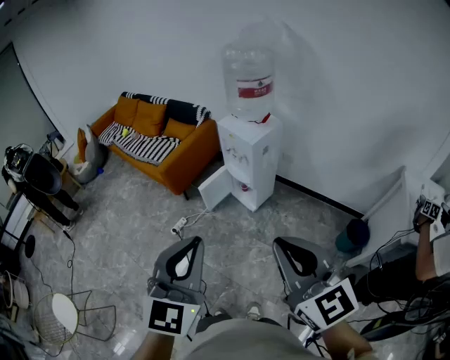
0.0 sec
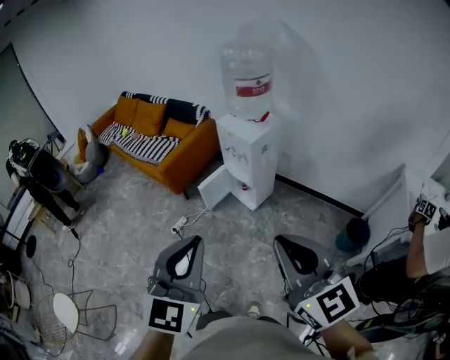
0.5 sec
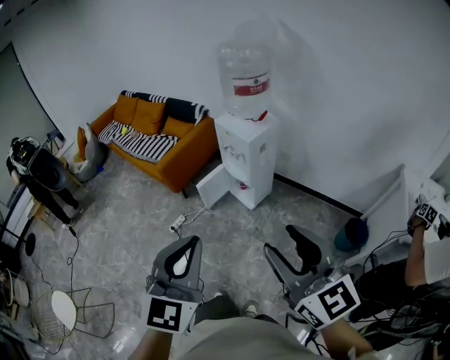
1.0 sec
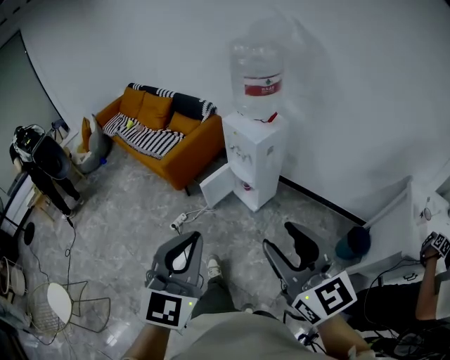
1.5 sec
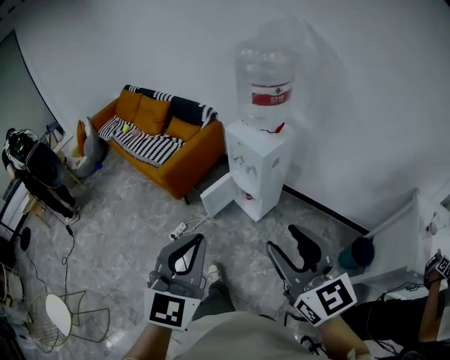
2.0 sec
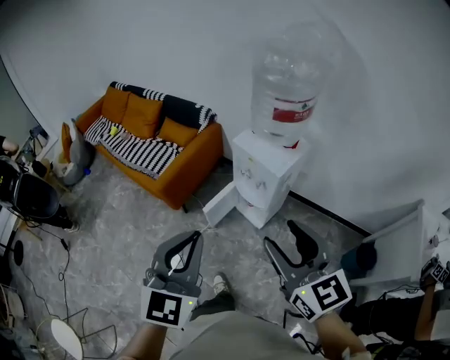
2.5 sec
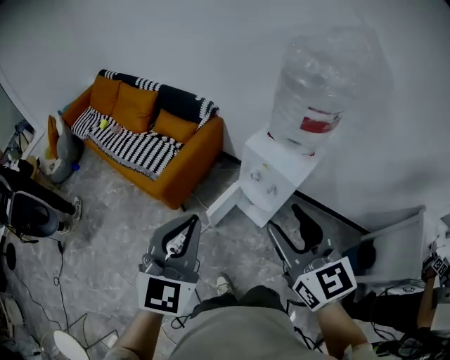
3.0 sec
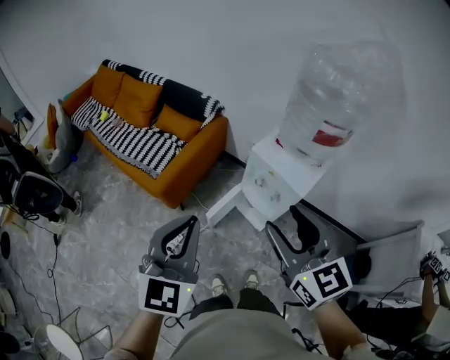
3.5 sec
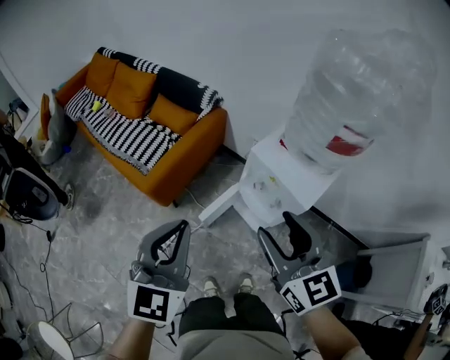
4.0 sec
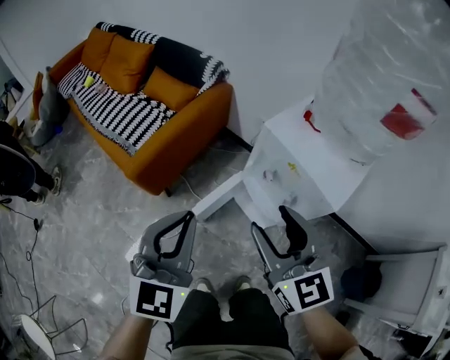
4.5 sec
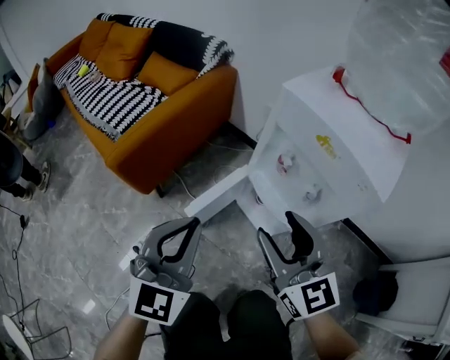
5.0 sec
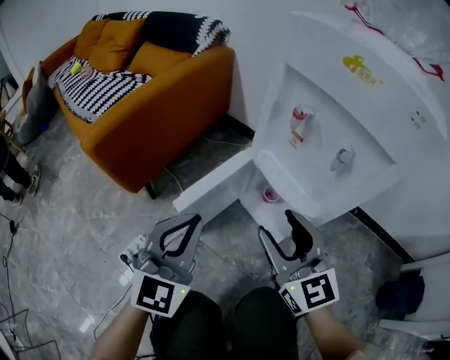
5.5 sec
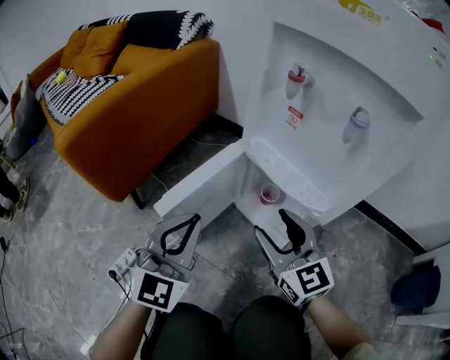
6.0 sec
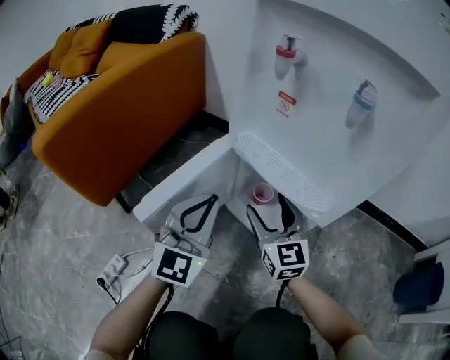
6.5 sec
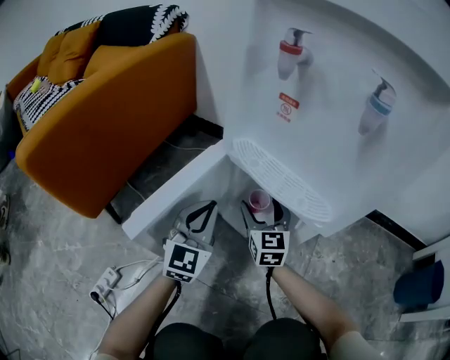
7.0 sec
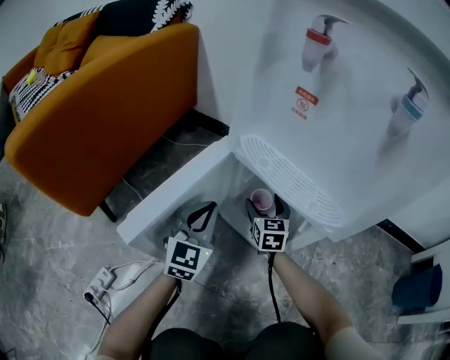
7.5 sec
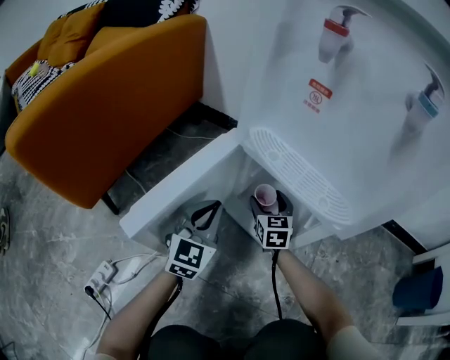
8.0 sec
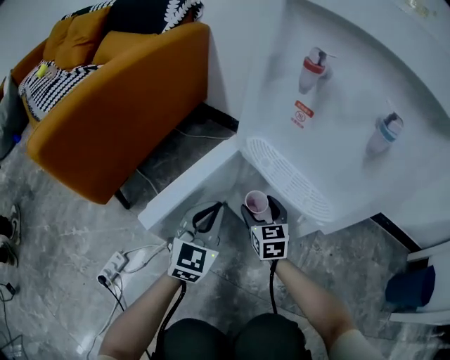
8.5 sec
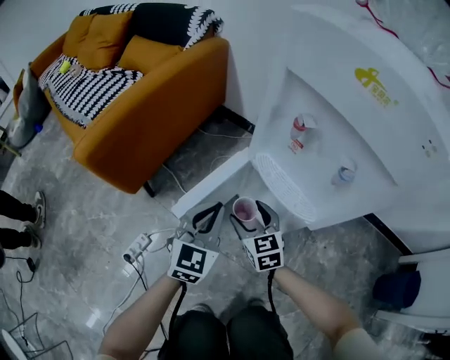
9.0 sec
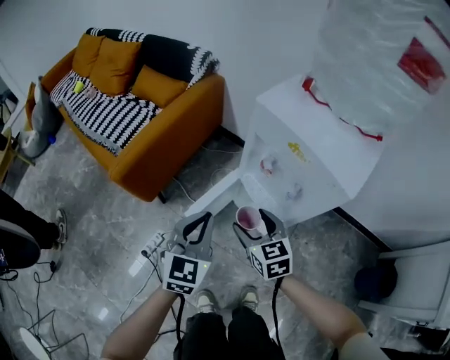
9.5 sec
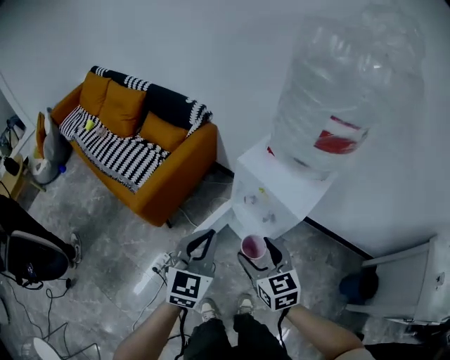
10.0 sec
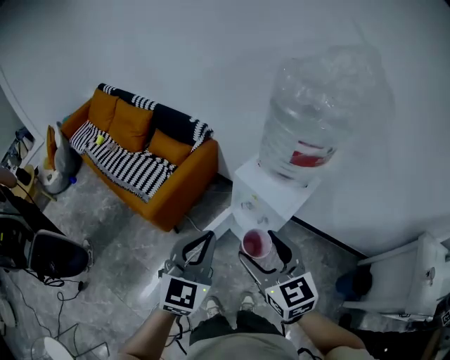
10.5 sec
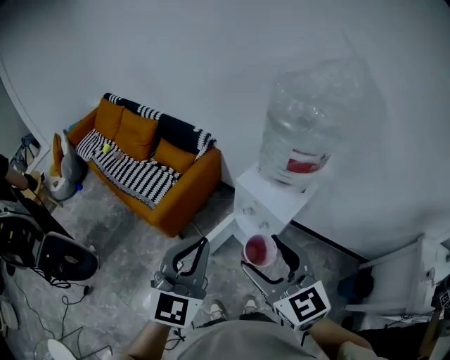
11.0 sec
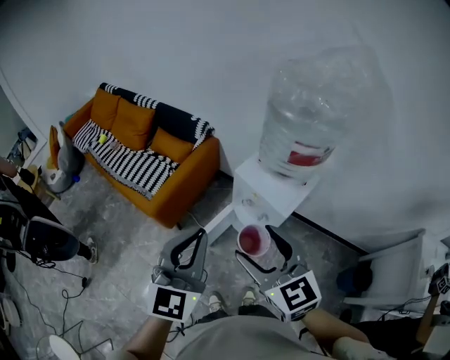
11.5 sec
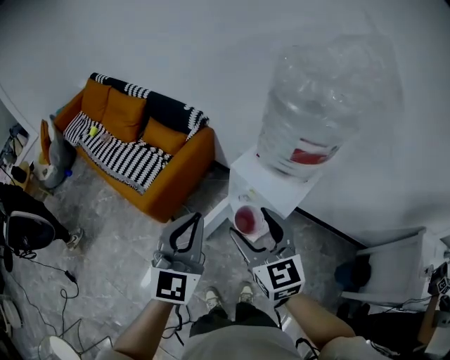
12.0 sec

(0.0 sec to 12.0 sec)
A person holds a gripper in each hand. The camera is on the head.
0.0 sec - 2.0 sec: The grippers both shift forward by some 15 cm. The right gripper opens its fingers.
2.0 sec - 4.0 sec: The pair of grippers is taken forward and to the left, roughly 50 cm.
4.0 sec - 6.0 sec: The two grippers go about 60 cm downward. The left gripper swivels some 30 degrees.
6.0 sec - 8.0 sec: Both grippers travel together downward and forward, some 30 cm. The right gripper rotates approximately 30 degrees.
8.0 sec - 10.0 sec: The two grippers go about 70 cm upward. The right gripper swivels approximately 20 degrees.
10.0 sec - 12.0 sec: The two grippers go about 20 cm upward.

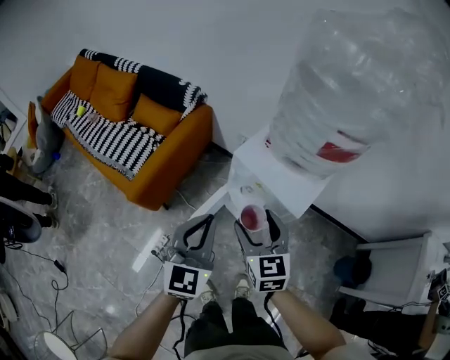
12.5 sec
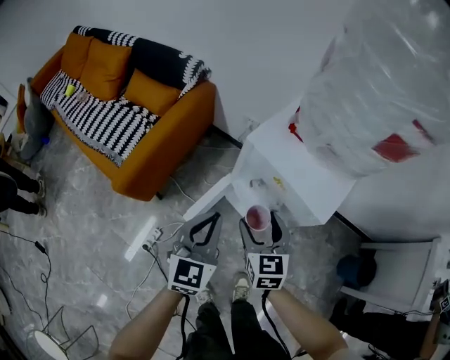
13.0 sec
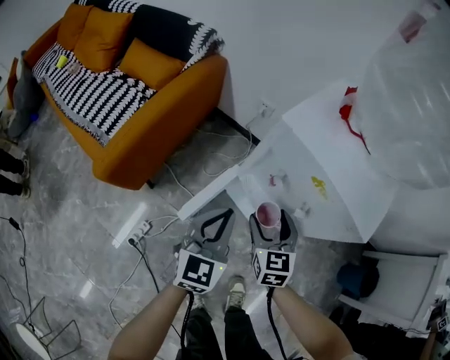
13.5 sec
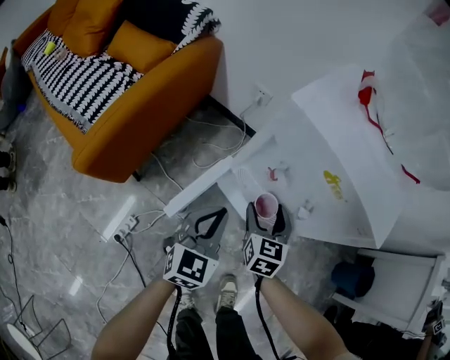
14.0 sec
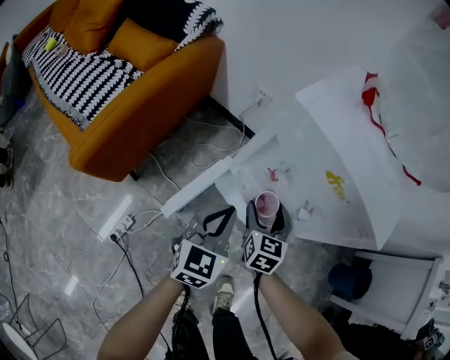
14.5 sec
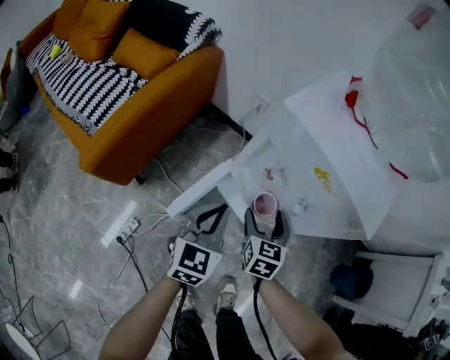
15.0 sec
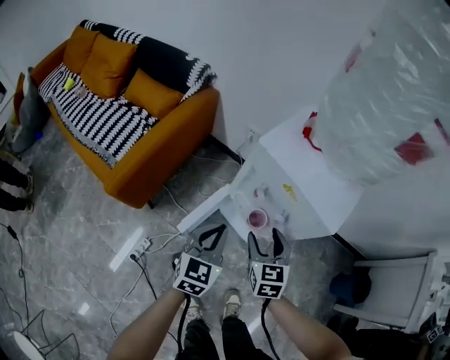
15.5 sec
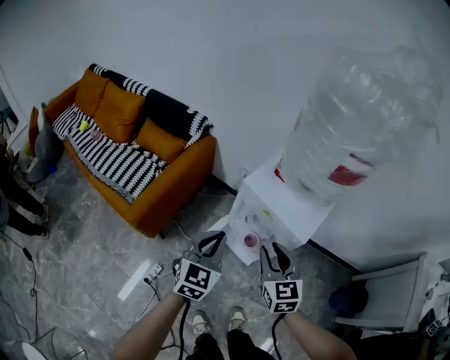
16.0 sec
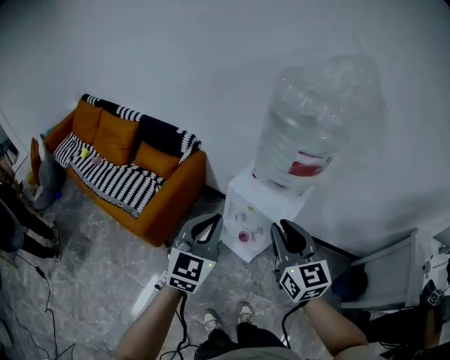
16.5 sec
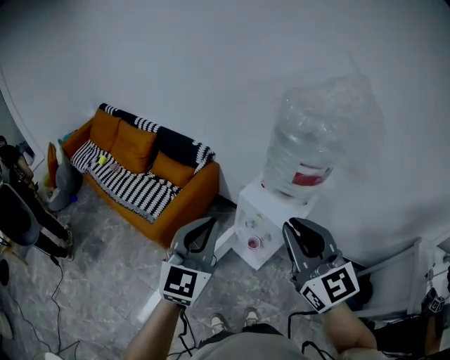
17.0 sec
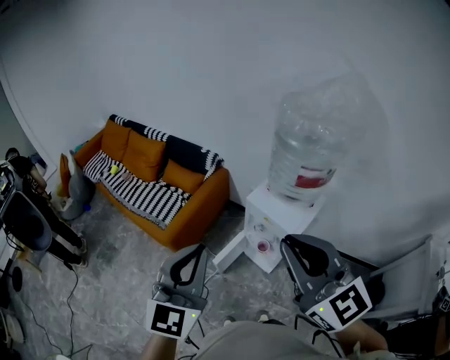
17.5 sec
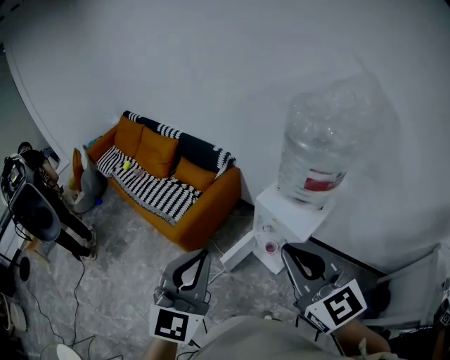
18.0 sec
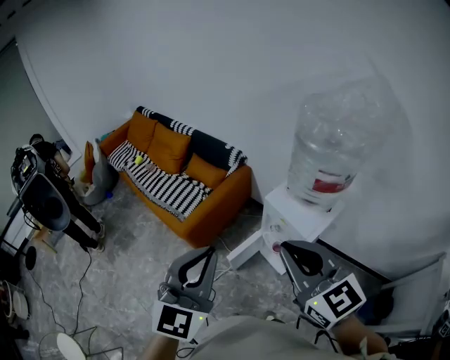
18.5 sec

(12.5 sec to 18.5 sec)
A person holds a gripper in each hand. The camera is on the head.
12.5 sec - 14.5 sec: The two grippers go approximately 40 cm downward. The right gripper rotates roughly 20 degrees.
14.5 sec - 16.5 sec: Both grippers move upward, some 50 cm. The right gripper rotates about 30 degrees, and closes.
16.5 sec - 18.5 sec: The right gripper moves upward, backward and to the left, some 20 cm, and swivels some 30 degrees. The left gripper moves upward and backward, approximately 20 cm.

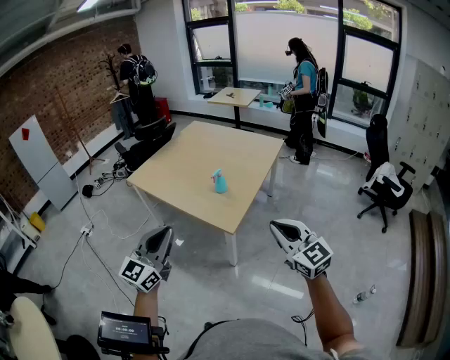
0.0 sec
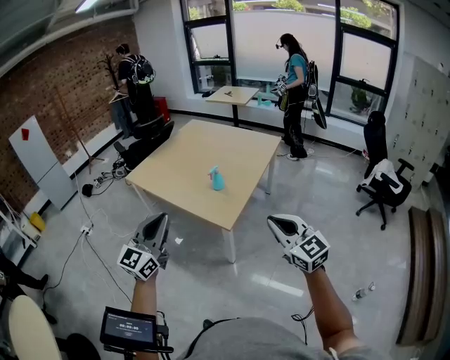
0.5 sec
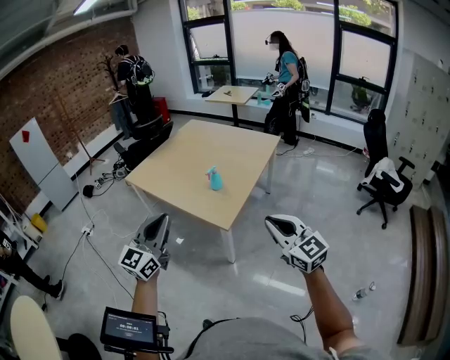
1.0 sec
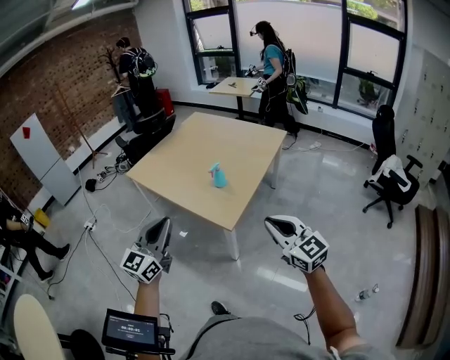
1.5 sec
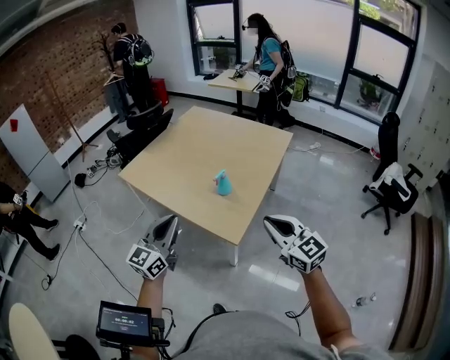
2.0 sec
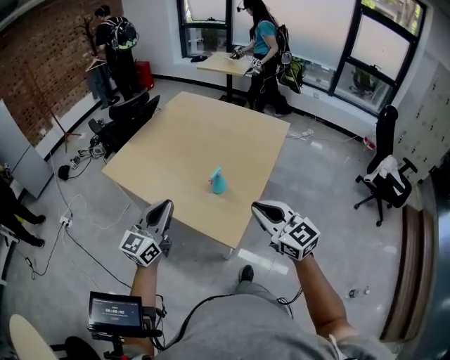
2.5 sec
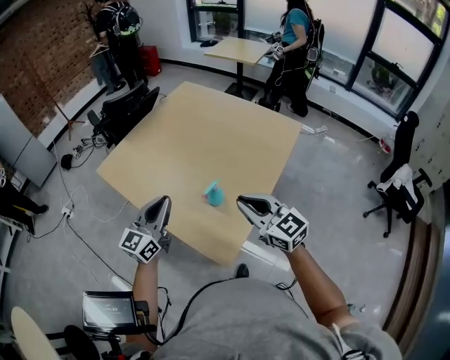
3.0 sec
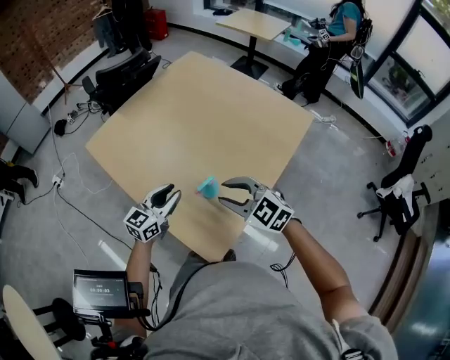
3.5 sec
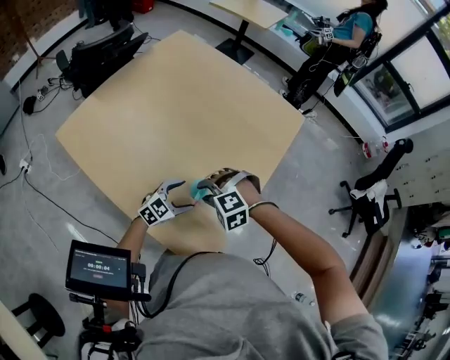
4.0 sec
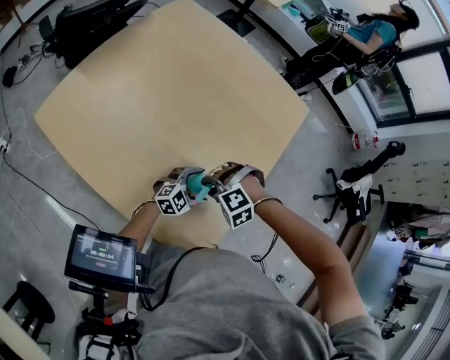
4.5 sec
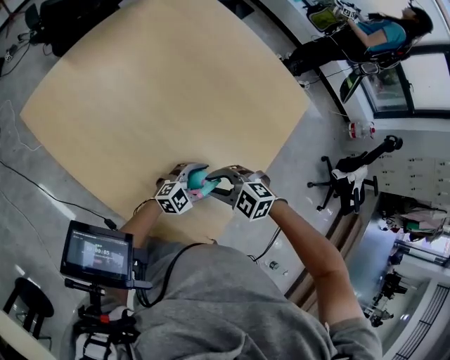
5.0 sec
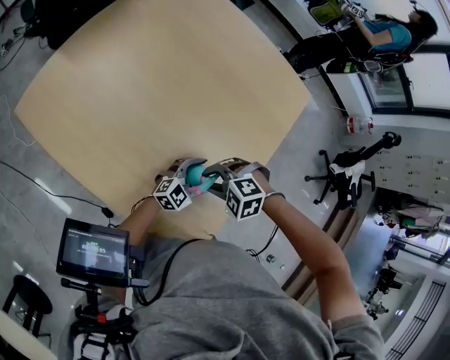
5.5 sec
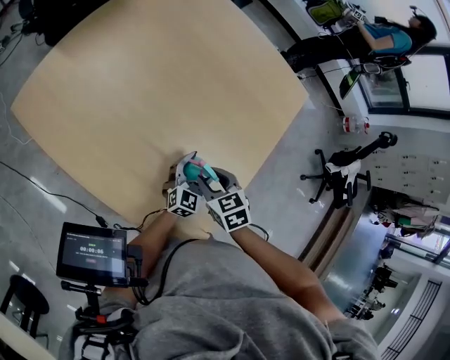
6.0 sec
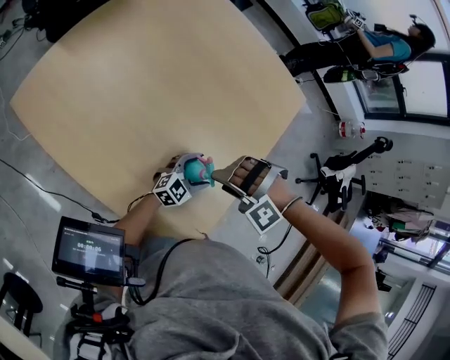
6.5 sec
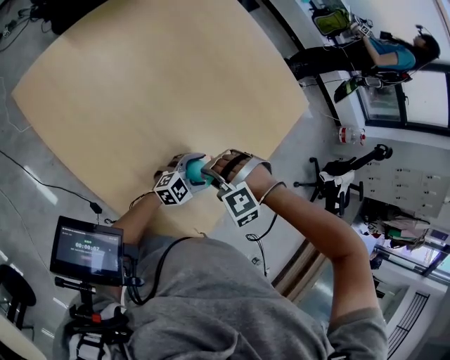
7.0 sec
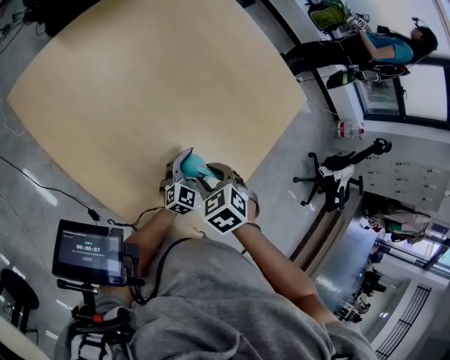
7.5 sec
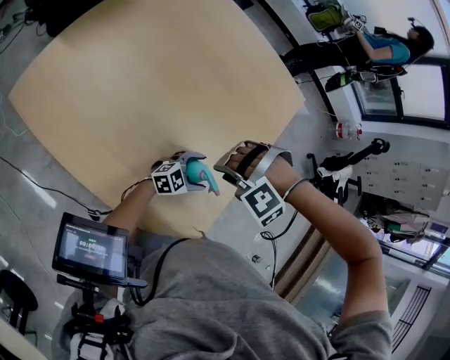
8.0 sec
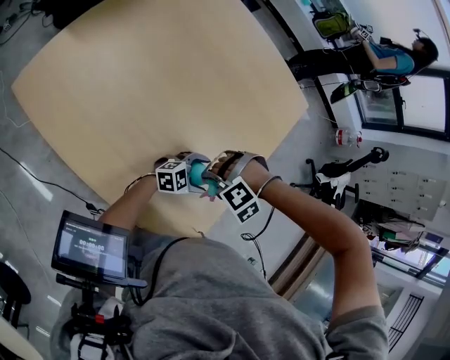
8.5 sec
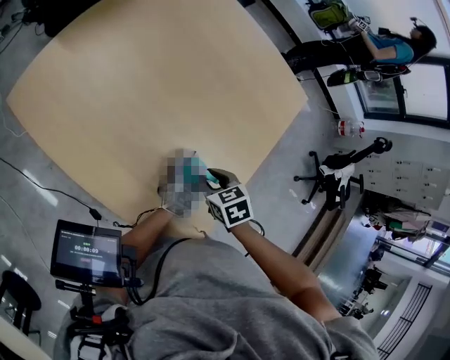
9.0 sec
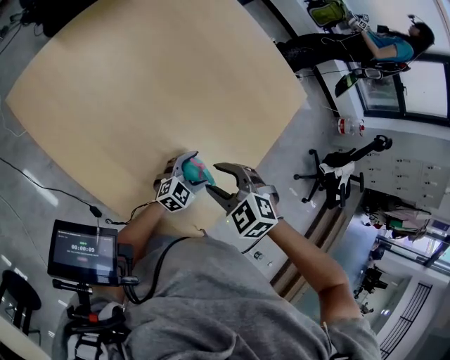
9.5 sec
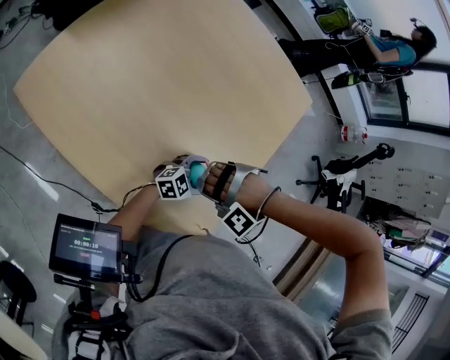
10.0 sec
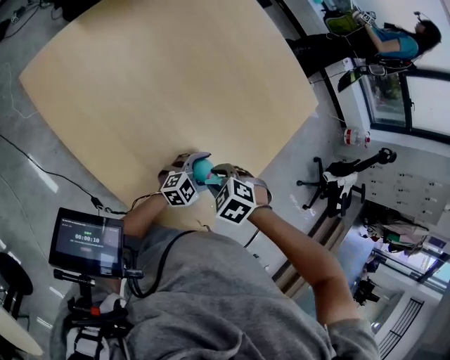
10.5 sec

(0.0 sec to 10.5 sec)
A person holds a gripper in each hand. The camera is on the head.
0.0 sec - 2.0 sec: Both grippers move forward, some 20 cm.
2.0 sec - 4.0 sec: The two grippers travel together, forward, approximately 40 cm. Both grippers travel together downward, roughly 30 cm. The right gripper angles its fingers downward, by roughly 60 degrees, and opens, while the left gripper tips its fingers downward by about 30 degrees, and opens its fingers.
4.0 sec - 6.5 sec: The right gripper ends up some 15 cm from where it was, swivels some 30 degrees, and opens. The left gripper ends up approximately 15 cm from where it was.
6.5 sec - 8.5 sec: The left gripper rotates roughly 20 degrees. The right gripper goes up and down, some 10 cm each way, reversing 2 times, rotates some 20 degrees, and closes up.
8.5 sec - 10.5 sec: The right gripper moves roughly 5 cm upward and comes back, and rotates around the line of its fingers by about 60 degrees, clockwise from behind. Meanwhile the left gripper rotates some 20 degrees.
